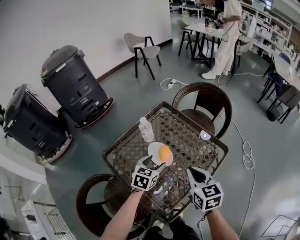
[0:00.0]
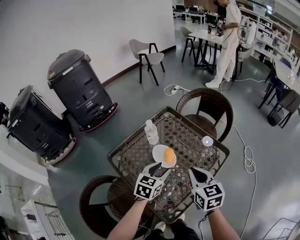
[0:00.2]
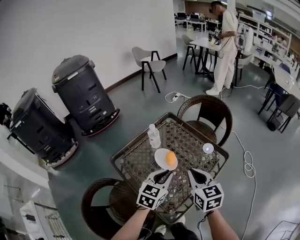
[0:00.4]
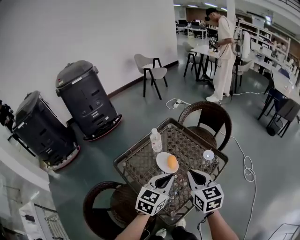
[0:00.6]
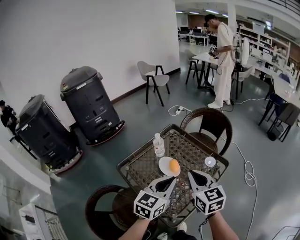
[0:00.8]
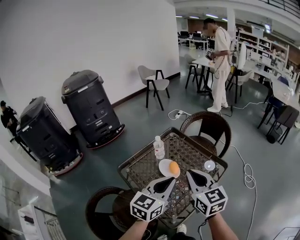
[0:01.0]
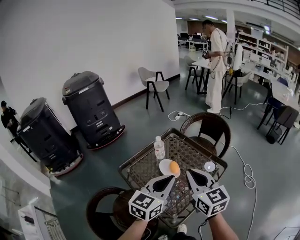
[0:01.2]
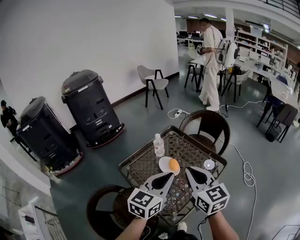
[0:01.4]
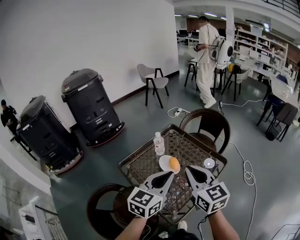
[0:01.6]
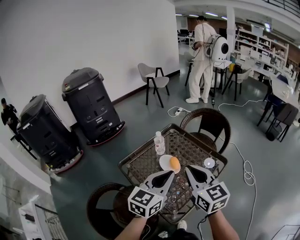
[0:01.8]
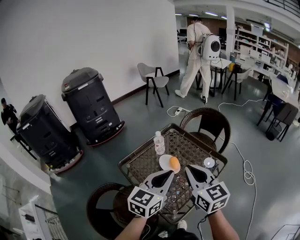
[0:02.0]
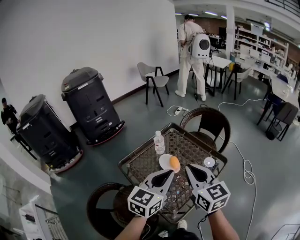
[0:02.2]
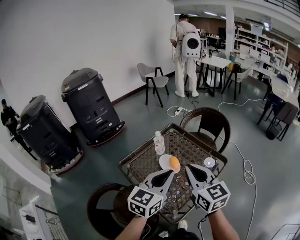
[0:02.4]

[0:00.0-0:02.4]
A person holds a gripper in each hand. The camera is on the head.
0:00.0 to 0:01.2: The left gripper shifts roughly 30 cm upward and backward, rotates some 30 degrees, and closes. The right gripper travels upward by some 15 cm, and rotates approximately 20 degrees.
0:01.2 to 0:02.4: Both grippers stay about where they are.

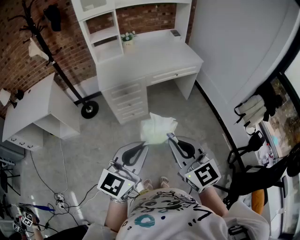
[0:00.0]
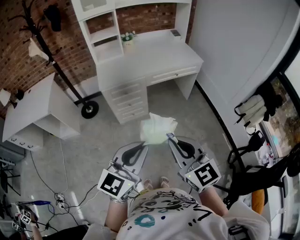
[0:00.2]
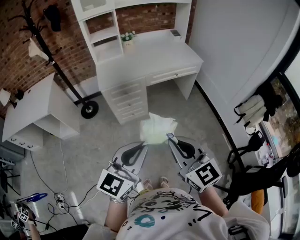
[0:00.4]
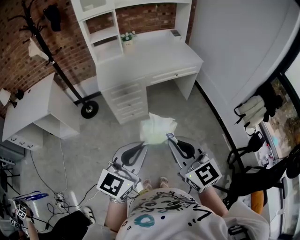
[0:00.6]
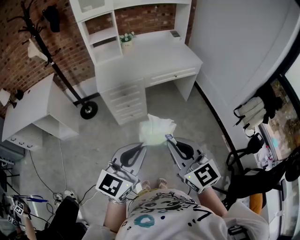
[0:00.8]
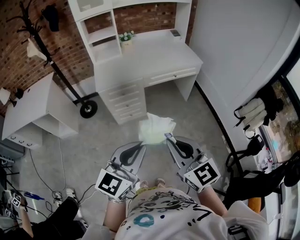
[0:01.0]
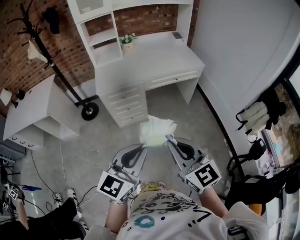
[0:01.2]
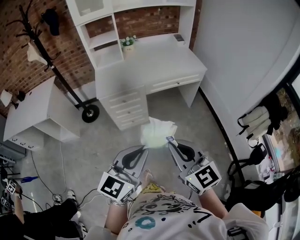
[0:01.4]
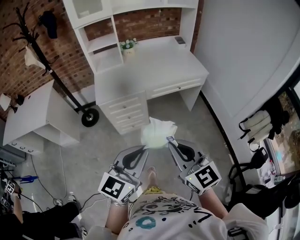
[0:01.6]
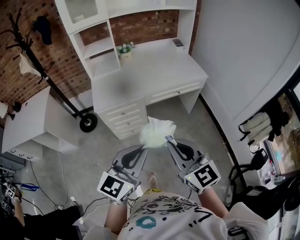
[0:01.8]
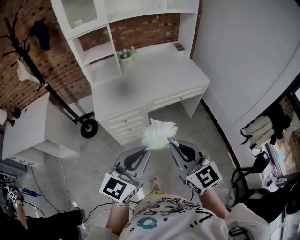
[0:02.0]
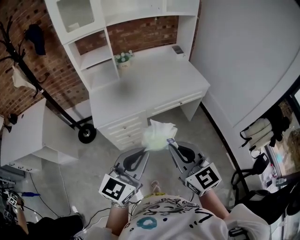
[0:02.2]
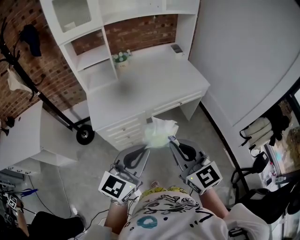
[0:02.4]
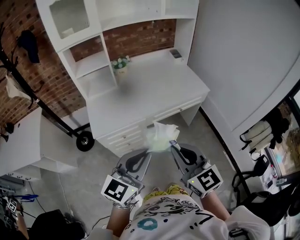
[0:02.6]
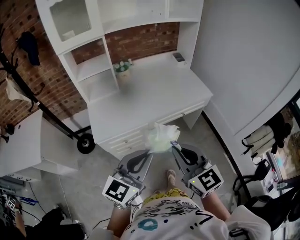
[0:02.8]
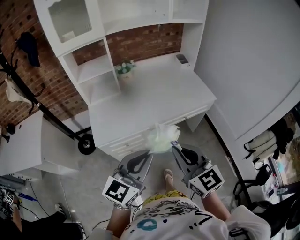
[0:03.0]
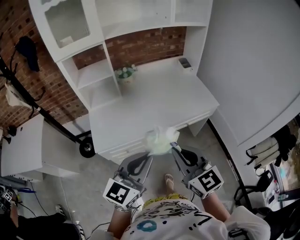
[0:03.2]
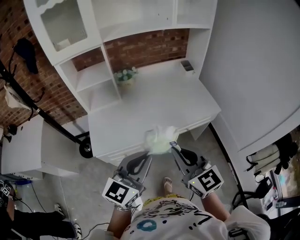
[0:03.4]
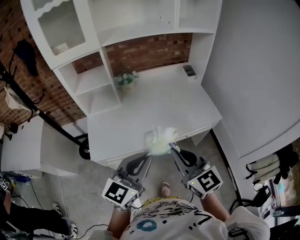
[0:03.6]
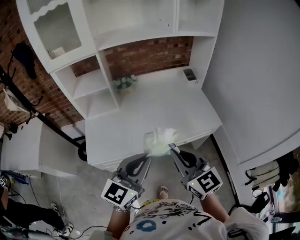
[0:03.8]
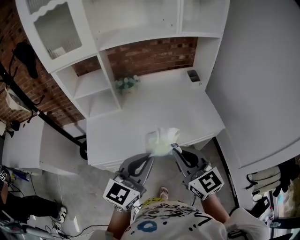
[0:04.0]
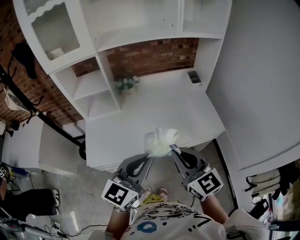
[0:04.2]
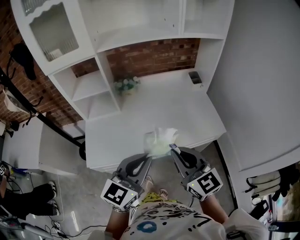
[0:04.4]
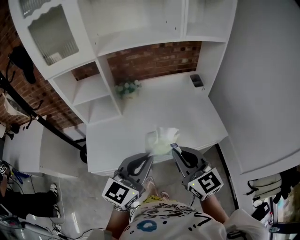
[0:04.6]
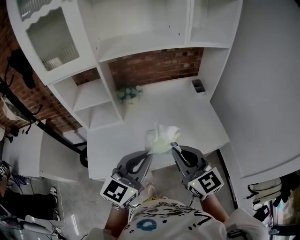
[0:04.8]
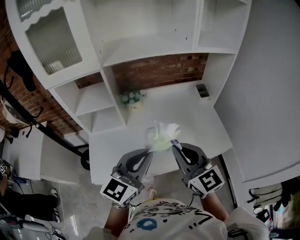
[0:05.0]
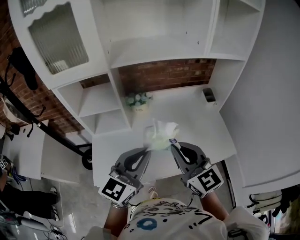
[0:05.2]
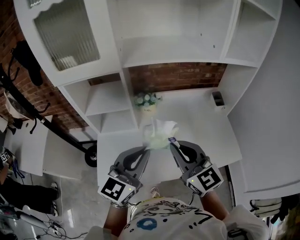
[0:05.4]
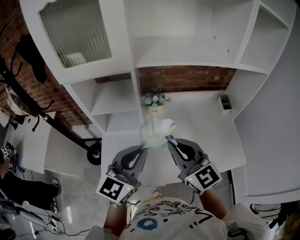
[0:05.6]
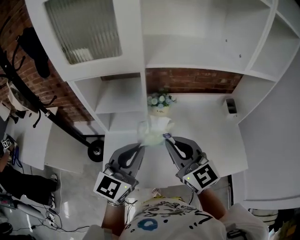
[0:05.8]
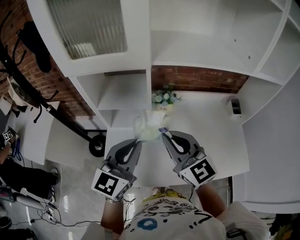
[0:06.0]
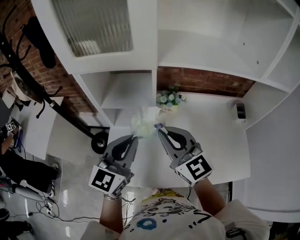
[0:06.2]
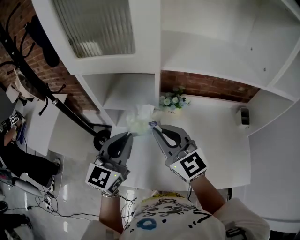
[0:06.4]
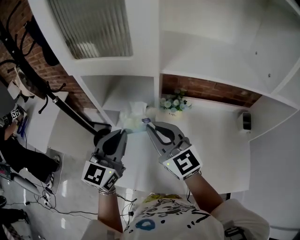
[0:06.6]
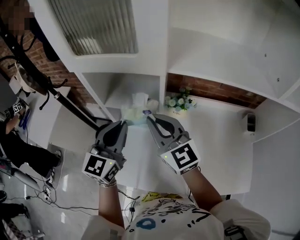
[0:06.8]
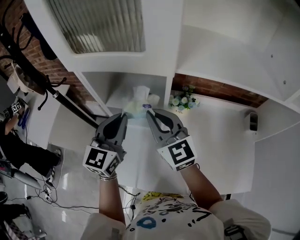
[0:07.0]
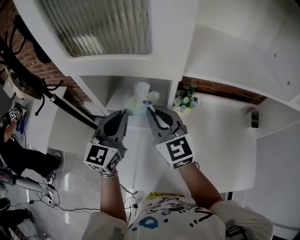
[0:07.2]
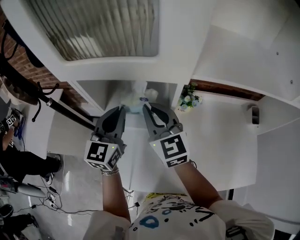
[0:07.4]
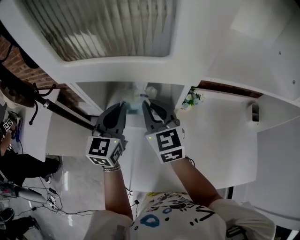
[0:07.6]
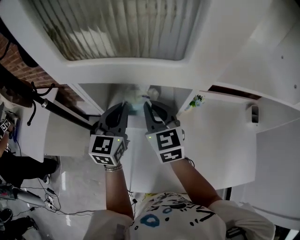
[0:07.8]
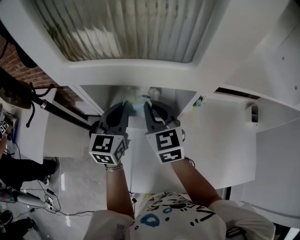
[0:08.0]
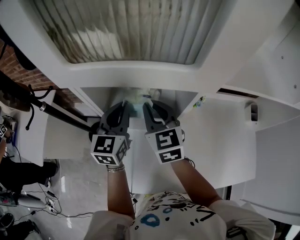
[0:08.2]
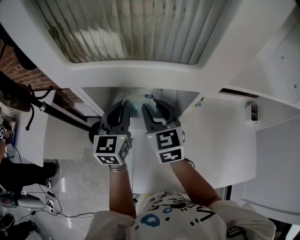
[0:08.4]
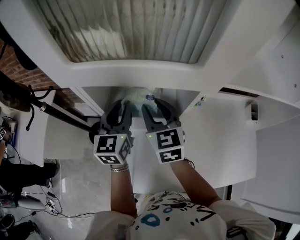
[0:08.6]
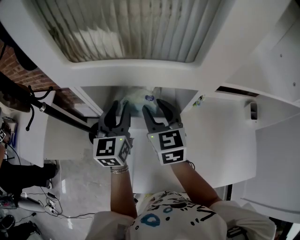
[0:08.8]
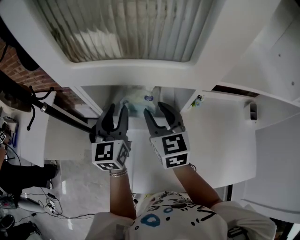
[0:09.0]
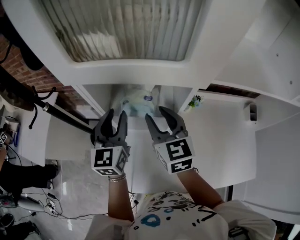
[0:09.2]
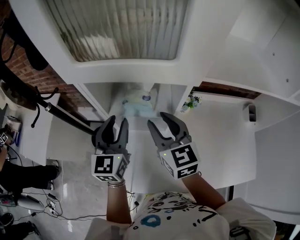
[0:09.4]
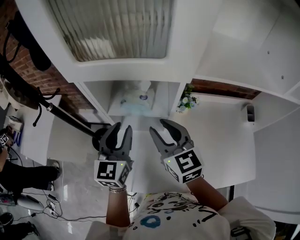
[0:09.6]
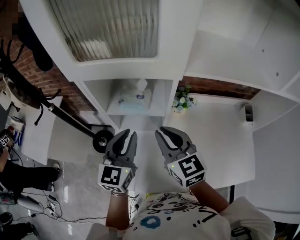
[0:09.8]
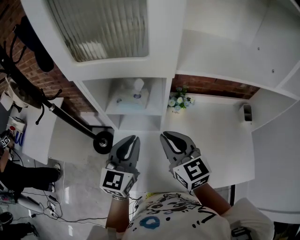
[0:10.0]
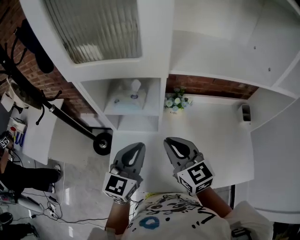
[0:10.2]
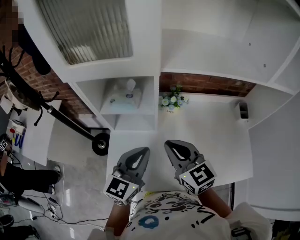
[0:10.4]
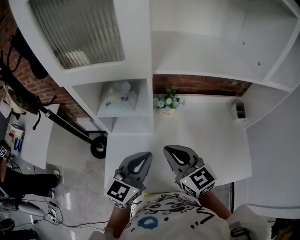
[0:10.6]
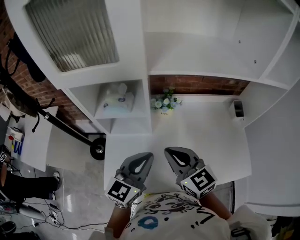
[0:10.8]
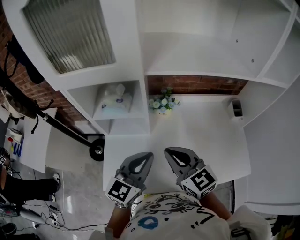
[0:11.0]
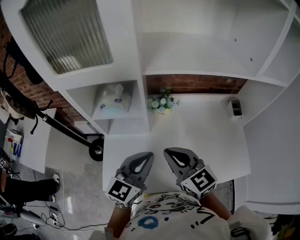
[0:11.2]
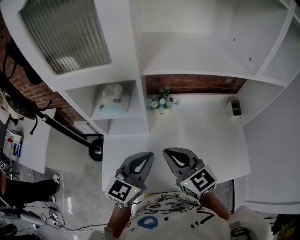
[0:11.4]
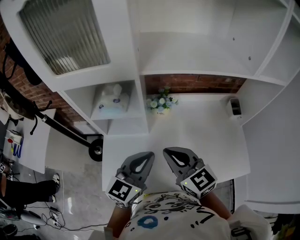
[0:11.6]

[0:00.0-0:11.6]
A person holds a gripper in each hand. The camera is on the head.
0:00.0 to 0:01.4: Both grippers move forward, approximately 10 cm.
0:01.4 to 0:02.8: The grippers both shift forward by roughly 25 cm.
0:02.8 to 0:04.4: The grippers both shift forward by approximately 25 cm.
0:04.4 to 0:05.8: Both grippers travel together forward and to the left, some 30 cm.
0:05.8 to 0:07.2: Both grippers travel together forward and to the left, roughly 25 cm. The left gripper changes its angle by about 20 degrees.
0:07.2 to 0:08.8: The right gripper moves forward and downward, approximately 10 cm, swivels roughly 20 degrees, and opens its fingers; the left gripper heads forward, covering approximately 10 cm, and opens.
0:08.8 to 0:10.2: Both grippers travel together backward and to the right, approximately 20 cm. The right gripper closes, while the left gripper closes up.
0:10.2 to 0:11.6: The left gripper goes roughly 10 cm to the right. The right gripper shifts by about 5 cm.

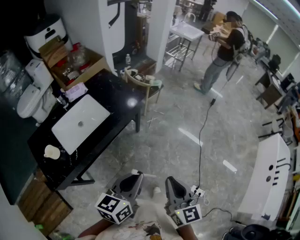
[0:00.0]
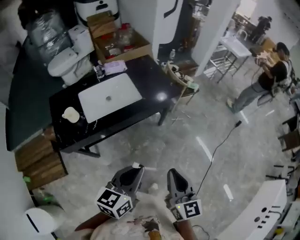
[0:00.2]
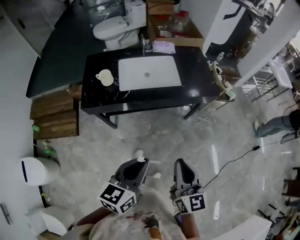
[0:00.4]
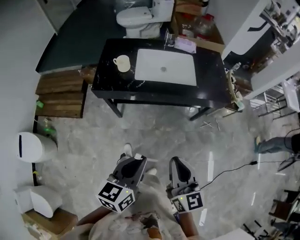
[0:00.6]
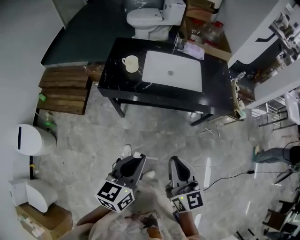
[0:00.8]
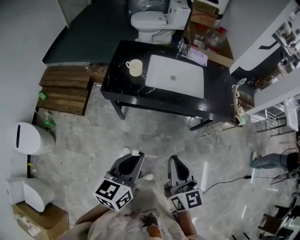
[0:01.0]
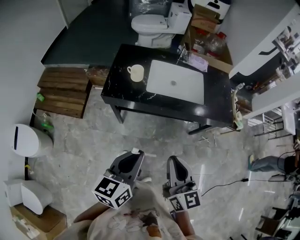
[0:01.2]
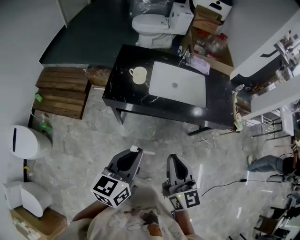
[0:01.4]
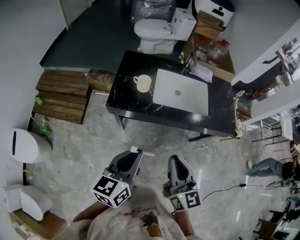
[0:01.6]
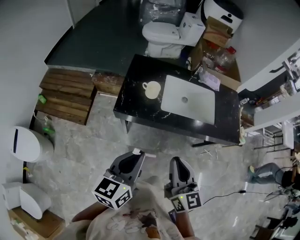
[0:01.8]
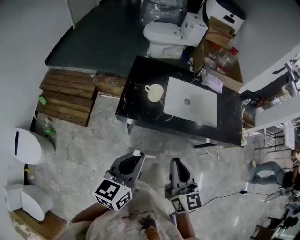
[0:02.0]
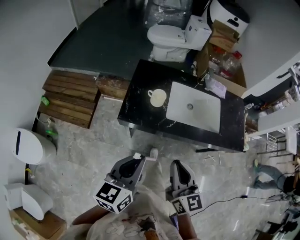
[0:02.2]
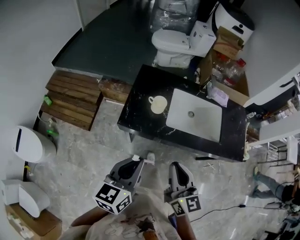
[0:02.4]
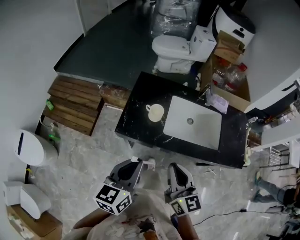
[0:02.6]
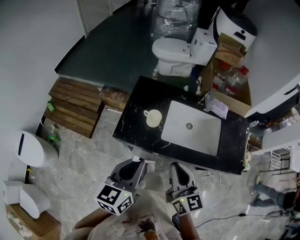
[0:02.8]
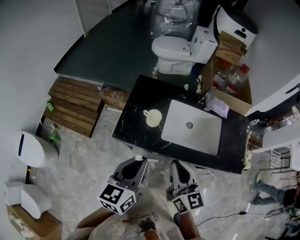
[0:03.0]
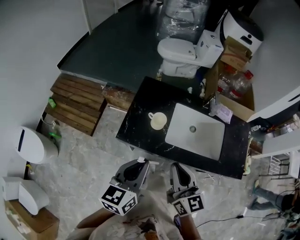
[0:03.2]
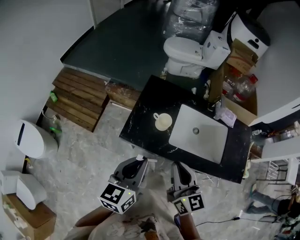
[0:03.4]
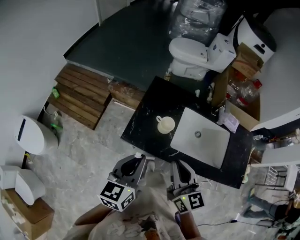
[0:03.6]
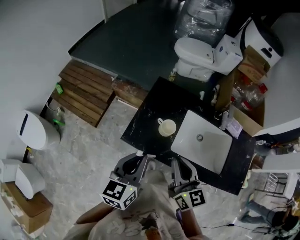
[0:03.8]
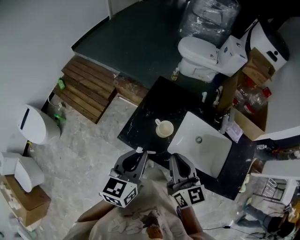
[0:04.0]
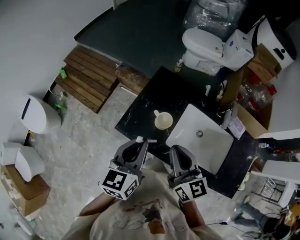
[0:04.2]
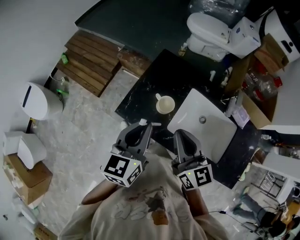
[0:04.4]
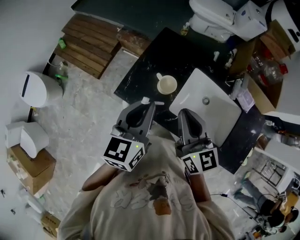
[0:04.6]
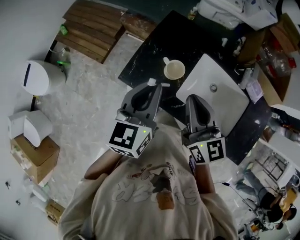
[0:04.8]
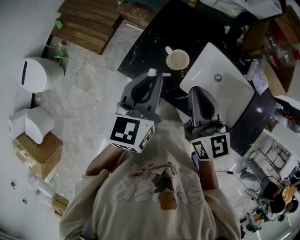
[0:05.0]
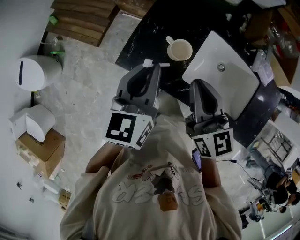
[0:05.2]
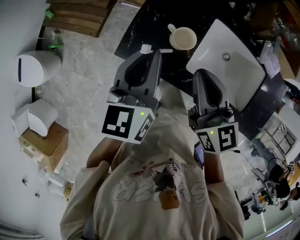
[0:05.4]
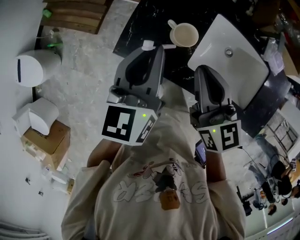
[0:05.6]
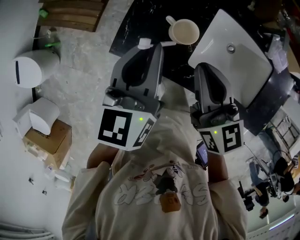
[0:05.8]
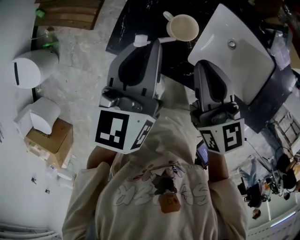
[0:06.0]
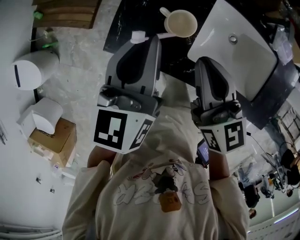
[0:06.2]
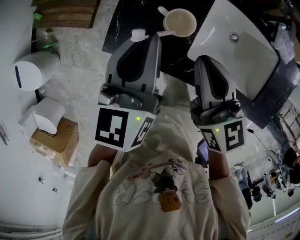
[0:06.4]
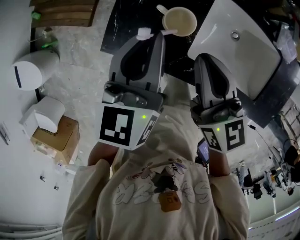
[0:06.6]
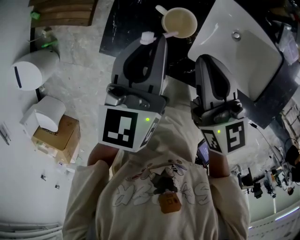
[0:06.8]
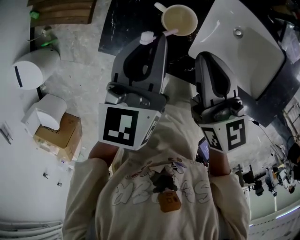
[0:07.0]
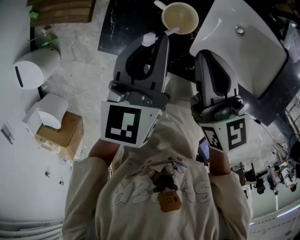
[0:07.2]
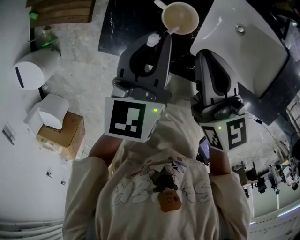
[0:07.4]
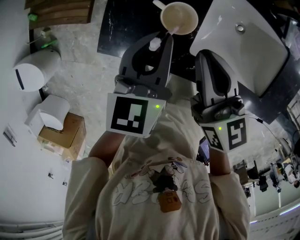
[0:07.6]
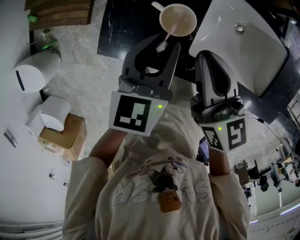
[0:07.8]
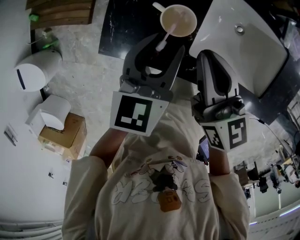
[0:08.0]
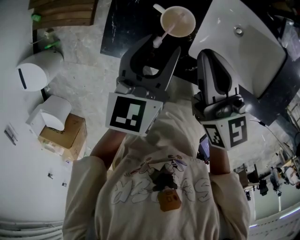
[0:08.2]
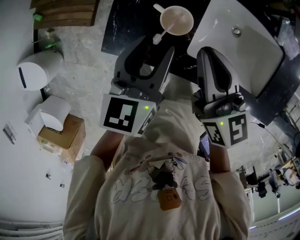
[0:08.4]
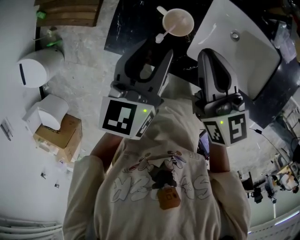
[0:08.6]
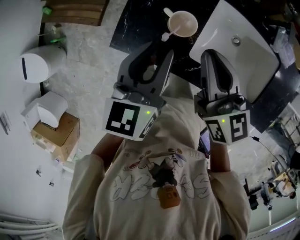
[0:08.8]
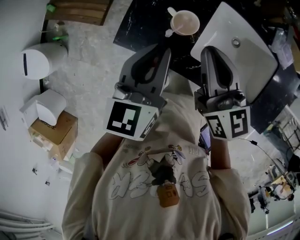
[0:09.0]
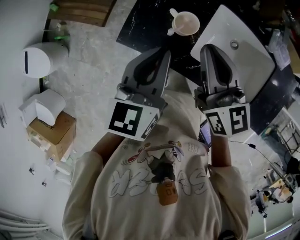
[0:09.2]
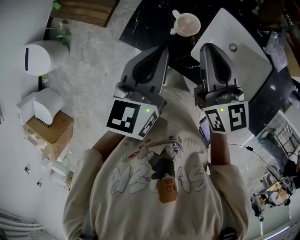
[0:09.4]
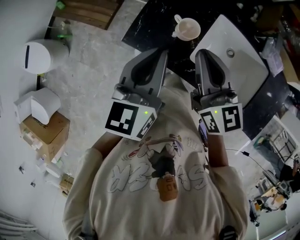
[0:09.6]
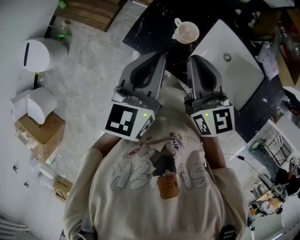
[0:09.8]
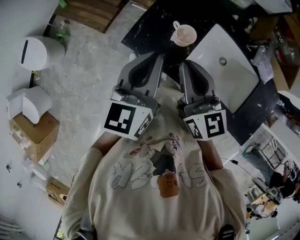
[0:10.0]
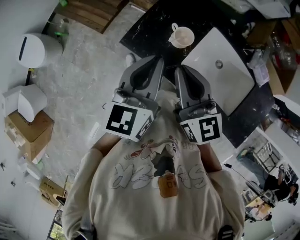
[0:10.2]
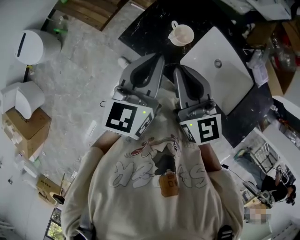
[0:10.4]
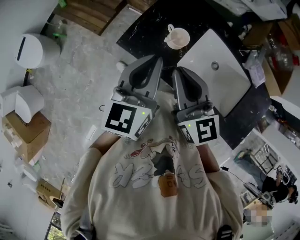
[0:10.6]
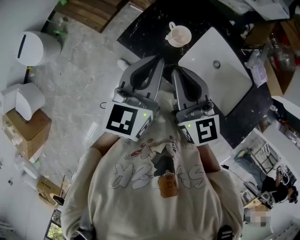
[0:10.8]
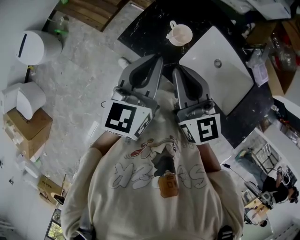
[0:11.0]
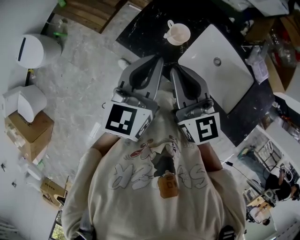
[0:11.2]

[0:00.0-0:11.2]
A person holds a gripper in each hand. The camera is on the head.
0:00.0 to 0:01.6: The left gripper moves roughly 35 cm, and turns by roughly 50 degrees. Meanwhile the right gripper shifts by some 30 cm, and swivels about 50 degrees.
0:01.6 to 0:03.2: Both grippers move forward, roughly 20 cm.
0:03.2 to 0:04.8: Both grippers travel together forward, about 15 cm. The left gripper changes its angle by about 20 degrees.
0:04.8 to 0:06.4: The left gripper heads downward and forward, covering approximately 10 cm; the right gripper goes roughly 10 cm downward.
0:06.4 to 0:08.0: The left gripper is displaced downward and to the right by roughly 10 cm, and opens.
0:08.0 to 0:09.6: The left gripper goes about 20 cm upward, backward and to the left, and closes its fingers; the right gripper goes approximately 10 cm upward.
0:09.6 to 0:11.2: The right gripper is displaced backward by roughly 5 cm.
